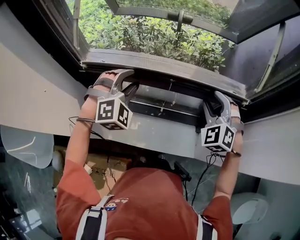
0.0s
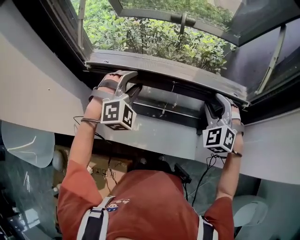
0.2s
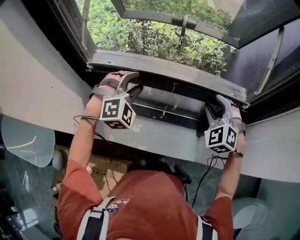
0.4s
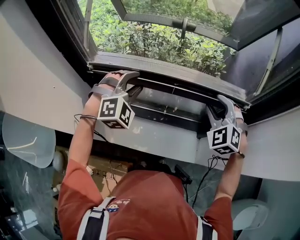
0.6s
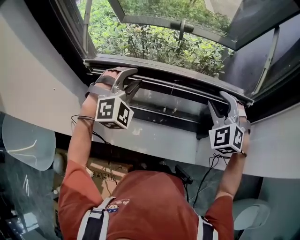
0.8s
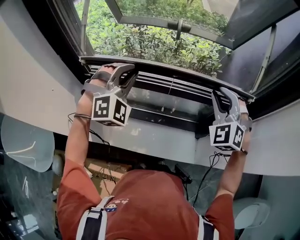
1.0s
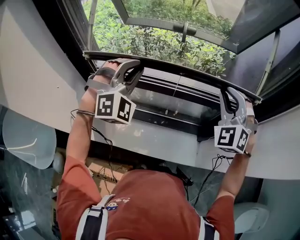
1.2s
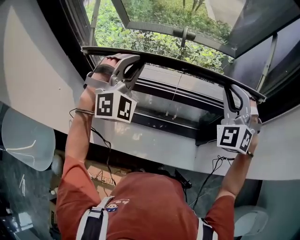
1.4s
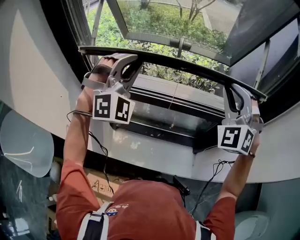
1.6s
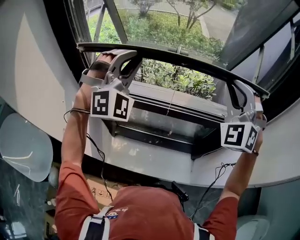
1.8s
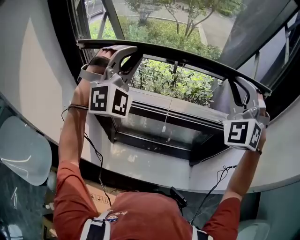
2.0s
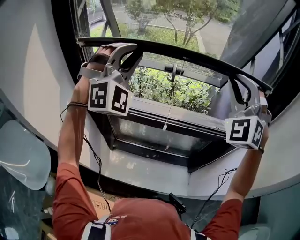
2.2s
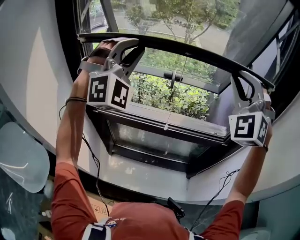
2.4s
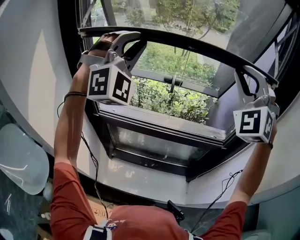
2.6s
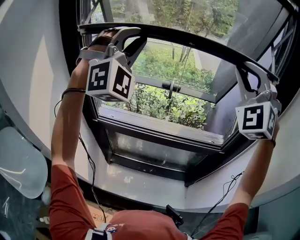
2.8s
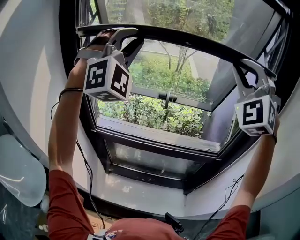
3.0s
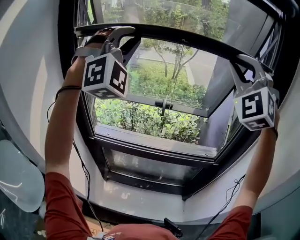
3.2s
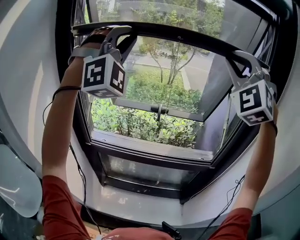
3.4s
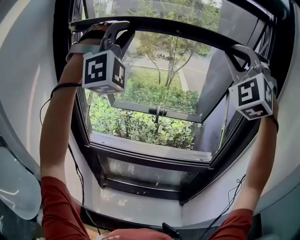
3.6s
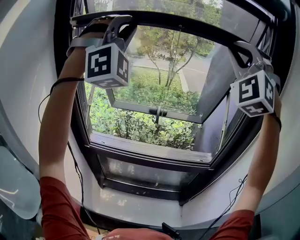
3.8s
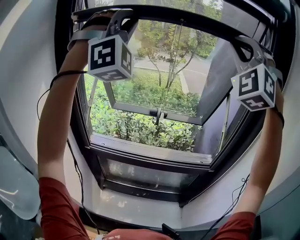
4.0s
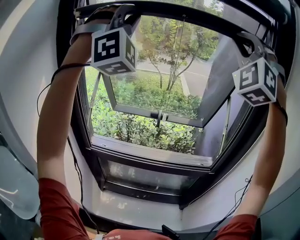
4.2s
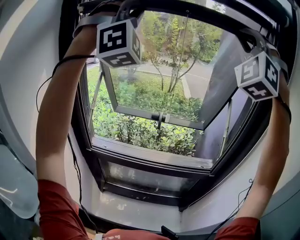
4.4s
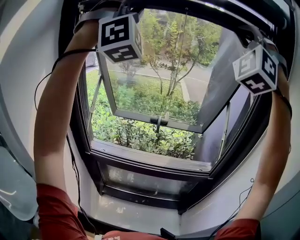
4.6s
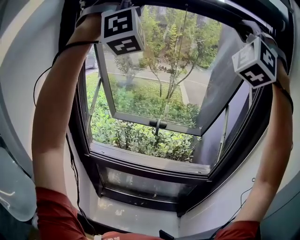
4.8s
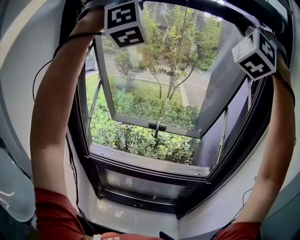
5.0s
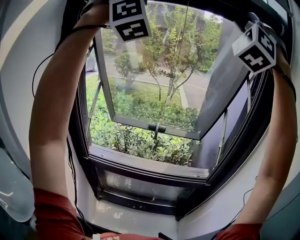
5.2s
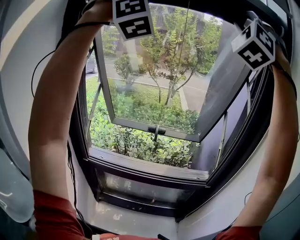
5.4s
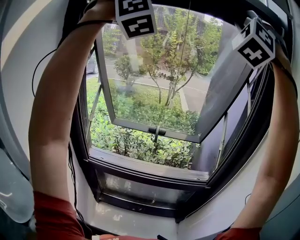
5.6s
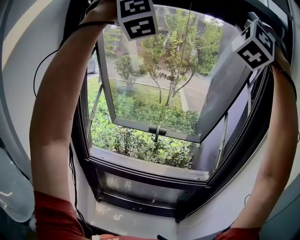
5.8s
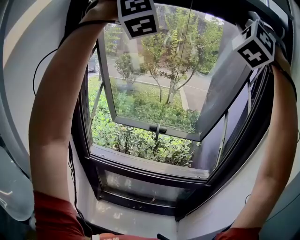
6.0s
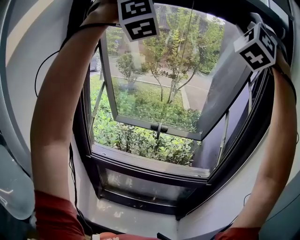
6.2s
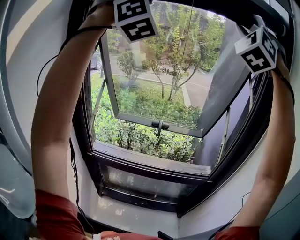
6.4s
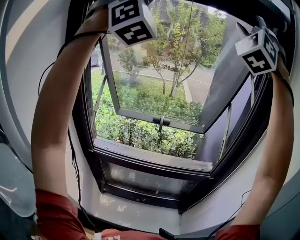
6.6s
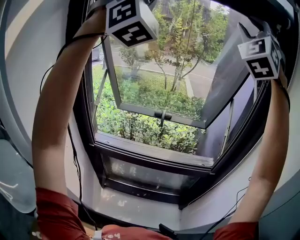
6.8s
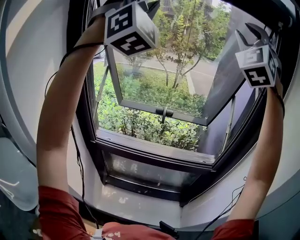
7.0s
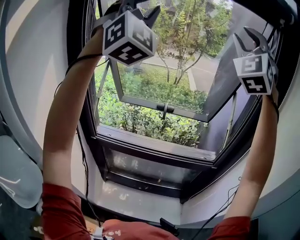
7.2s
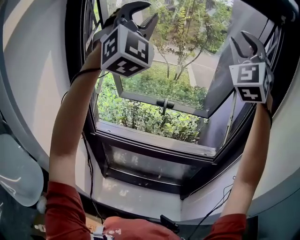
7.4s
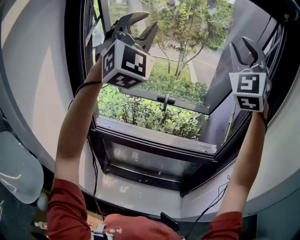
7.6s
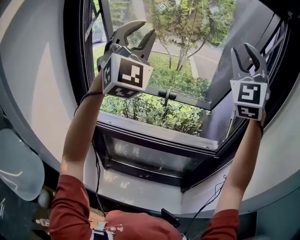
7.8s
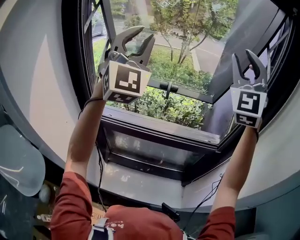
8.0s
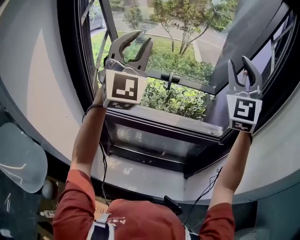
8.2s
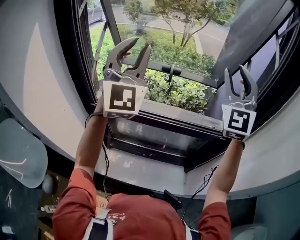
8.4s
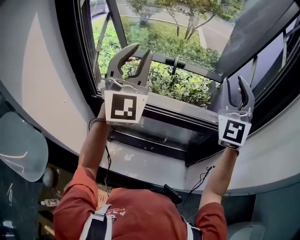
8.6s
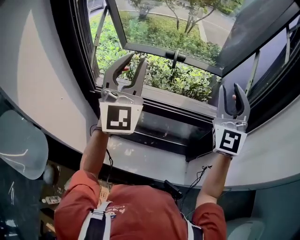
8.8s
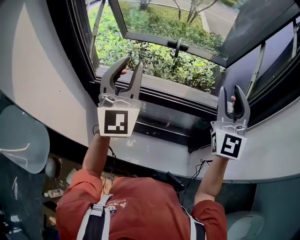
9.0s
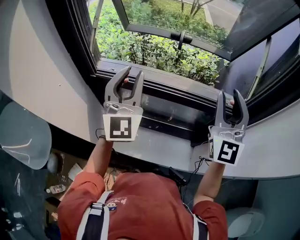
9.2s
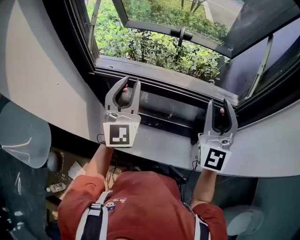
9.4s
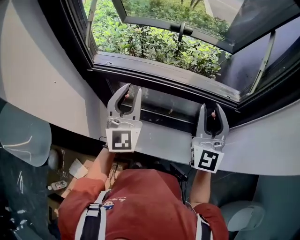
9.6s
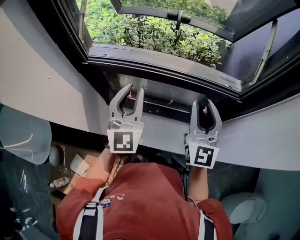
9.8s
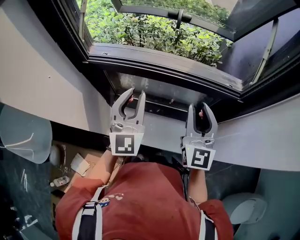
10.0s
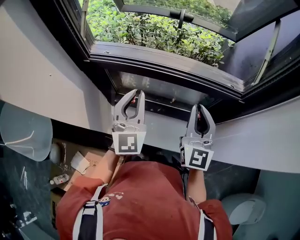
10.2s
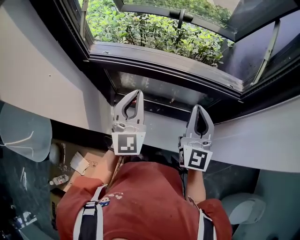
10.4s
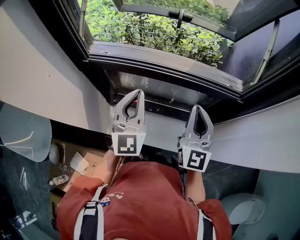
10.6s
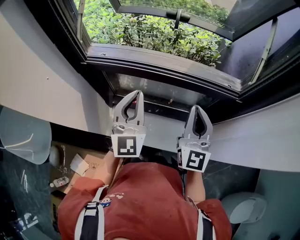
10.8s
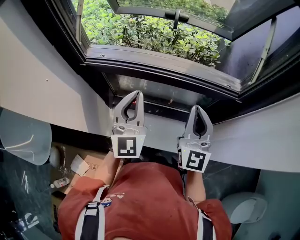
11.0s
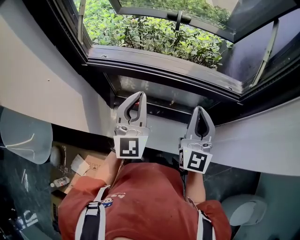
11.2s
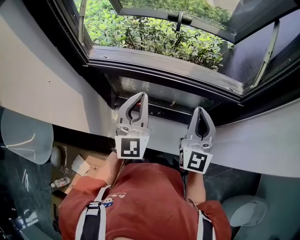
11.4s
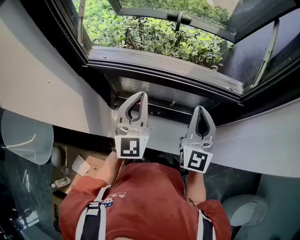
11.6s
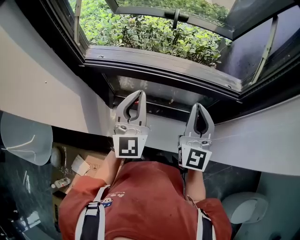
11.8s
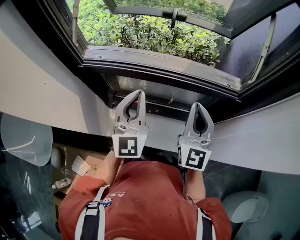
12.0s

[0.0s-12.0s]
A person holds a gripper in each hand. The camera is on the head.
0.0s to 1.6s: Both grippers move upward, some 20 cm. The right gripper turns by about 20 degrees, and closes up; the left gripper swivels some 30 degrees, and closes.
1.6s to 3.0s: The grippers both shift upward by about 25 cm.
3.0s to 4.4s: Both grippers travel together upward, approximately 15 cm. The right gripper rotates approximately 20 degrees, while the left gripper changes its angle by roughly 20 degrees.
4.4s to 6.0s: The grippers both shift upward by roughly 10 cm.
6.0s to 7.6s: The grippers both shift downward by approximately 20 cm. The right gripper swivels approximately 30 degrees, and opens its fingers. The left gripper turns by some 40 degrees.
7.6s to 9.0s: The grippers both shift downward by approximately 30 cm. The left gripper rotates roughly 40 degrees, while the right gripper swivels roughly 40 degrees.
9.0s to 10.4s: The grippers both shift downward by about 20 cm. The right gripper changes its angle by roughly 20 degrees, and closes. Meanwhile the left gripper closes.
10.4s to 12.0s: The grippers move only a little.

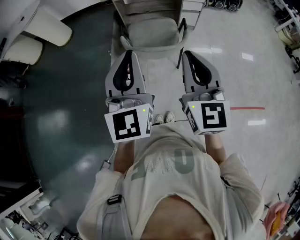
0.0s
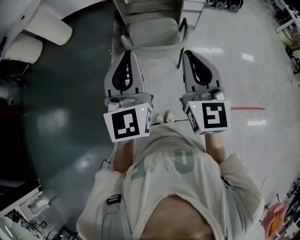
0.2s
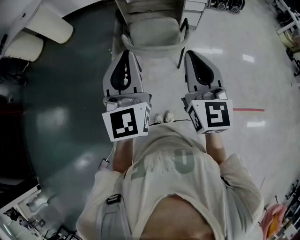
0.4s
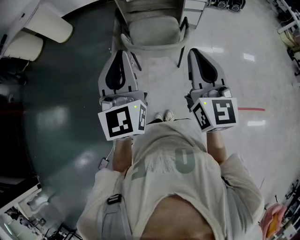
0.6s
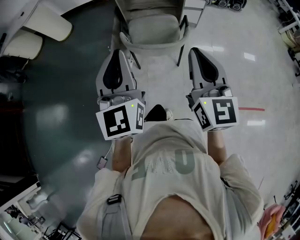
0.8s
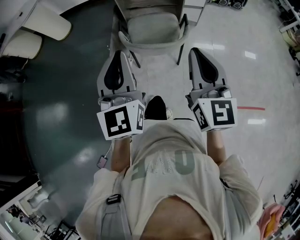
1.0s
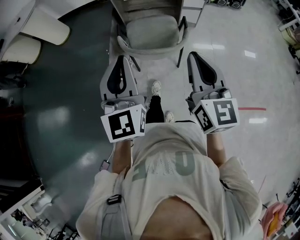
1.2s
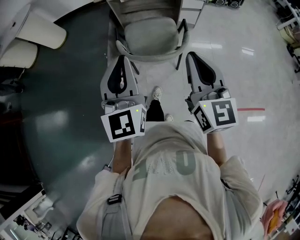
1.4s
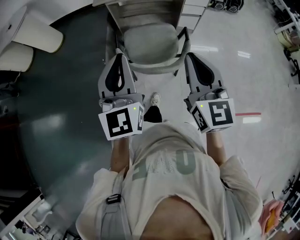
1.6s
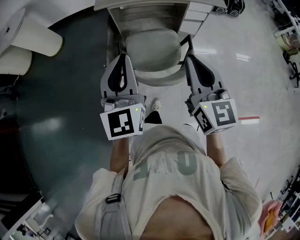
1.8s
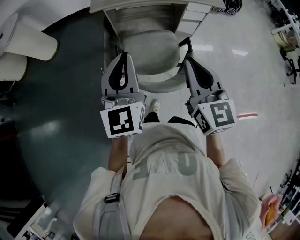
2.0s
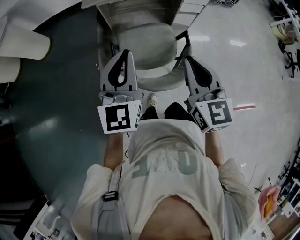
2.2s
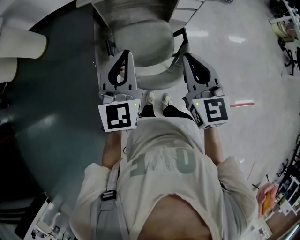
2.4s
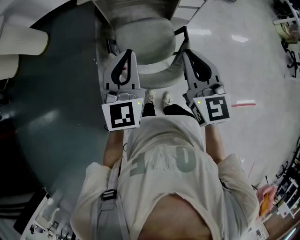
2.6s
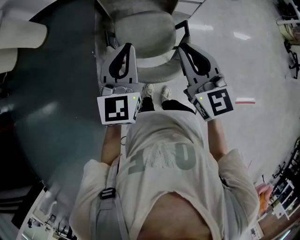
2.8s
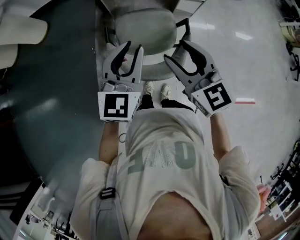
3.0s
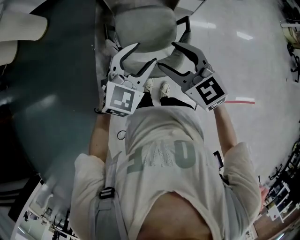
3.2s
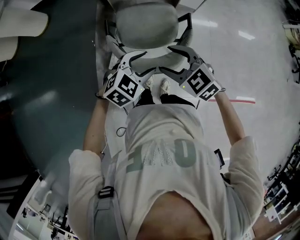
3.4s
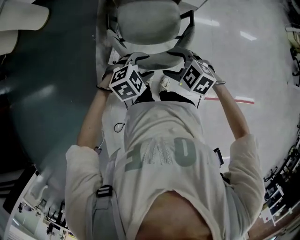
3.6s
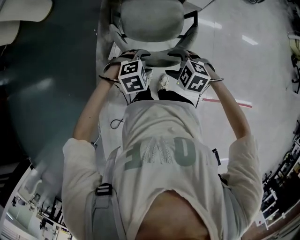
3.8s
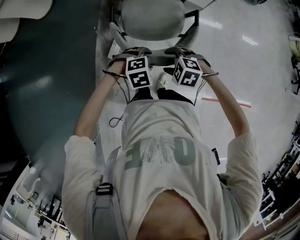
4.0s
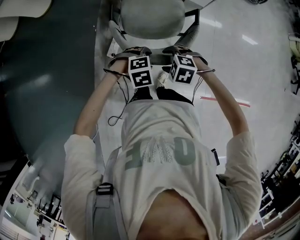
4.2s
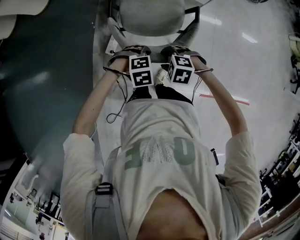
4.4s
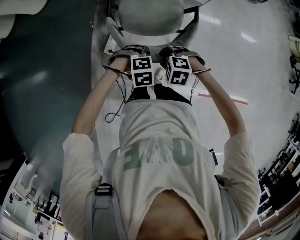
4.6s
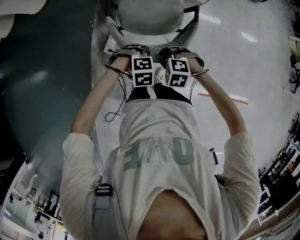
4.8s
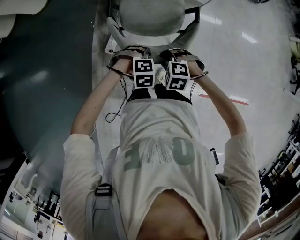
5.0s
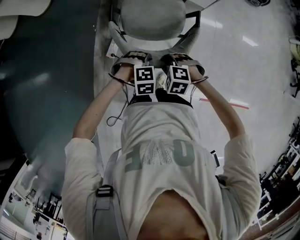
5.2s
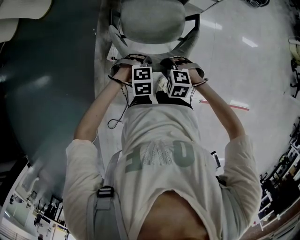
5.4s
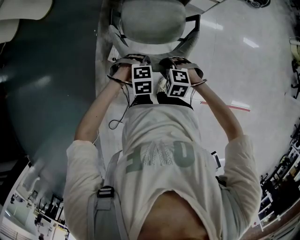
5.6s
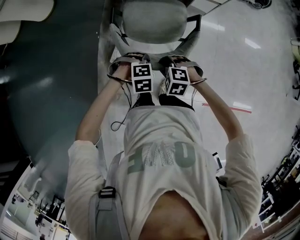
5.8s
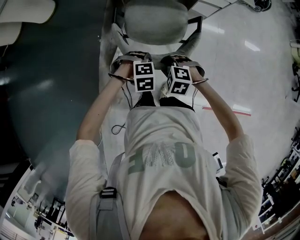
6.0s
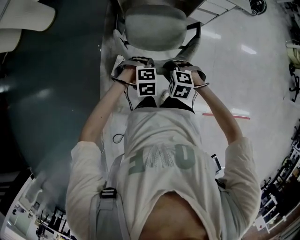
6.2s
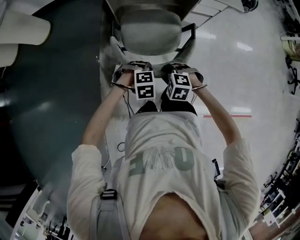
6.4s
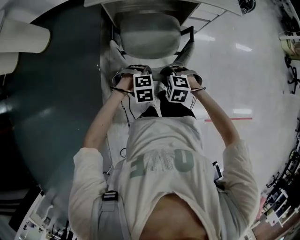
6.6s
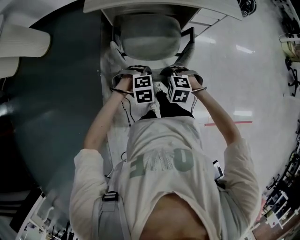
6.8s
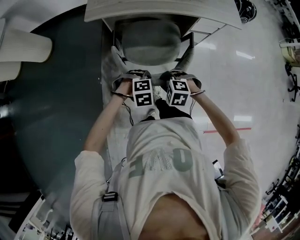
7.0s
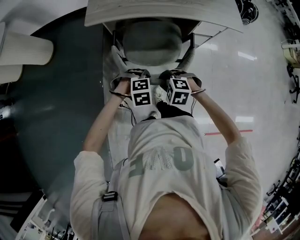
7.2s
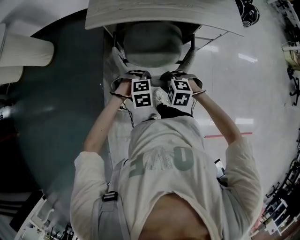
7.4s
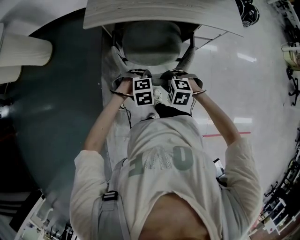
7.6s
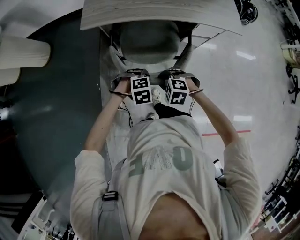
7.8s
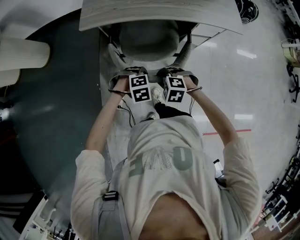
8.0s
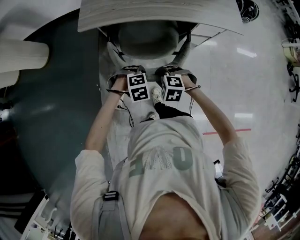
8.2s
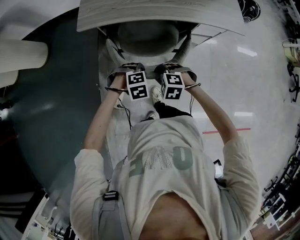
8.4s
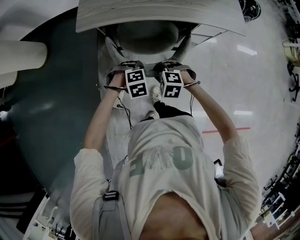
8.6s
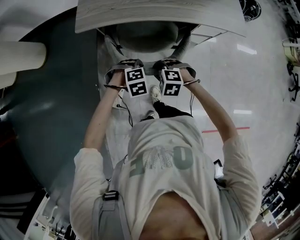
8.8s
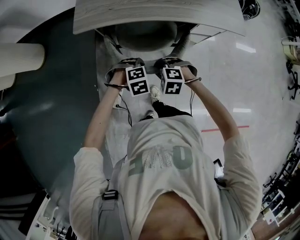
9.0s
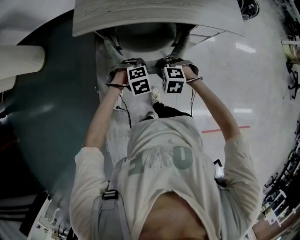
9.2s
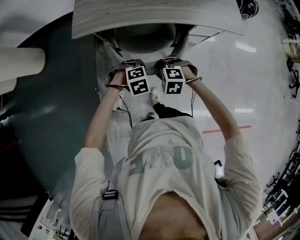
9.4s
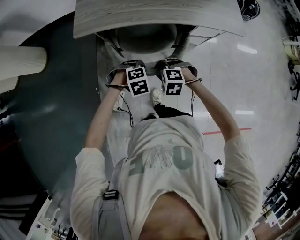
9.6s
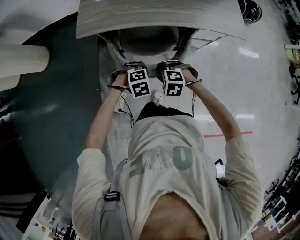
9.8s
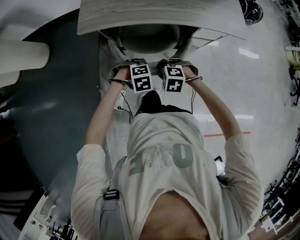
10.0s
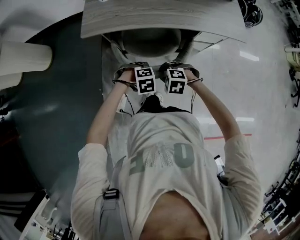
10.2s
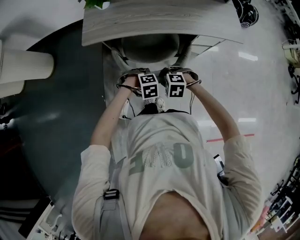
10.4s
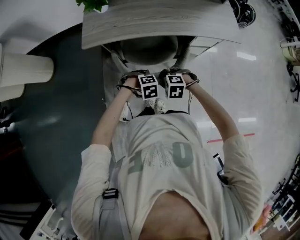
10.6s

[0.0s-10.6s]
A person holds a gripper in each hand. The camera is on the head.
0.0s to 1.6s: Both grippers travel together forward, some 15 cm.
1.6s to 3.0s: The left gripper heads forward, downward and to the right, covering approximately 15 cm, and swivels roughly 20 degrees; the right gripper heads forward and downward, covering roughly 10 cm, swivels some 20 degrees, and opens.
3.0s to 4.6s: The grippers both shift downward by some 30 cm. The right gripper points its fingers approximately 60 degrees further downward; the left gripper points its fingers roughly 70 degrees further downward.
4.6s to 6.0s: The left gripper shifts by about 5 cm; the right gripper moves roughly 5 cm.
6.0s to 7.6s: The right gripper changes place by roughly 20 cm. The left gripper ends up some 20 cm from where it was.
7.6s to 9.0s: The left gripper shifts by some 10 cm; the right gripper ends up roughly 10 cm from where it was.
9.0s to 10.6s: There are only small adjustments of the grippers.

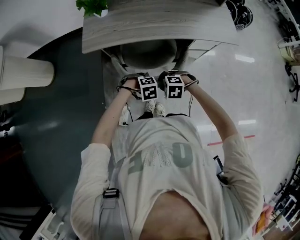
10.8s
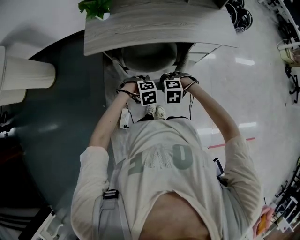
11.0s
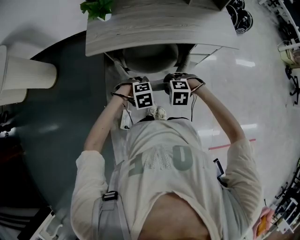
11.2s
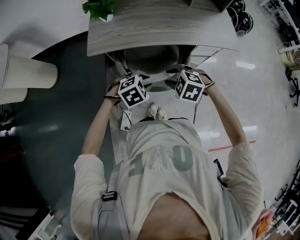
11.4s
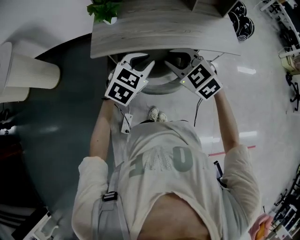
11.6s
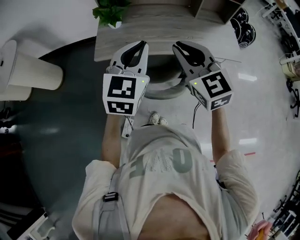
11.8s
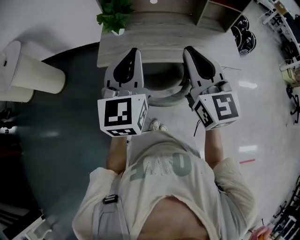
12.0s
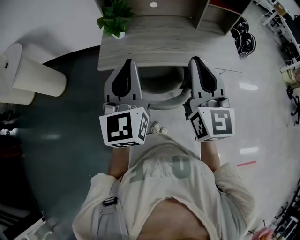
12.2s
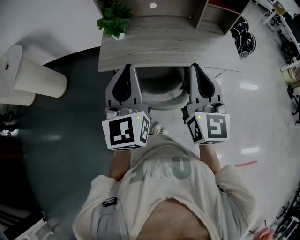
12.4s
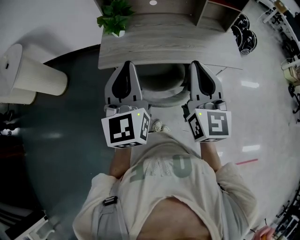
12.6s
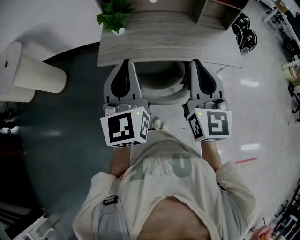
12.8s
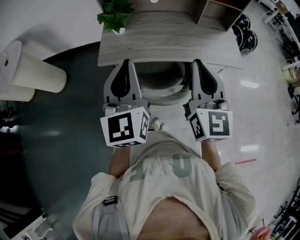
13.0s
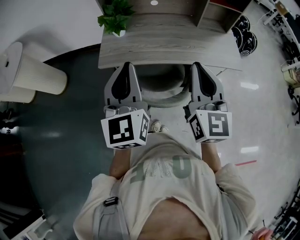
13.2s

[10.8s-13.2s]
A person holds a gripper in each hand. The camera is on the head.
10.8s to 12.0s: Both grippers travel together upward, about 50 cm. The left gripper angles its fingers upward, by approximately 80 degrees, and closes up; the right gripper angles its fingers upward, by about 70 degrees.
12.0s to 13.2s: There are only small adjustments of the grippers.
